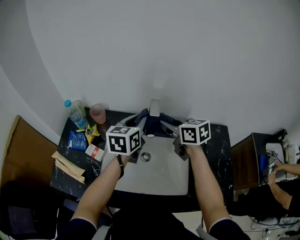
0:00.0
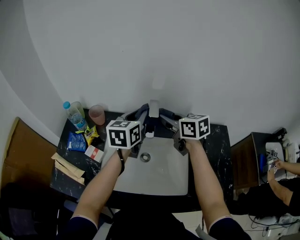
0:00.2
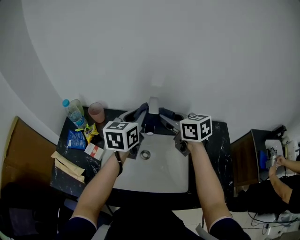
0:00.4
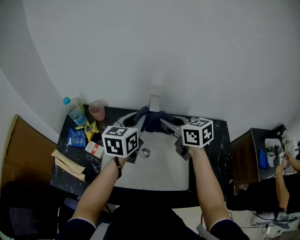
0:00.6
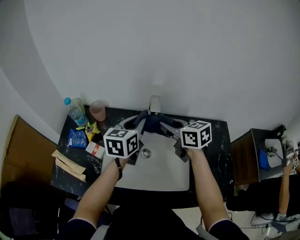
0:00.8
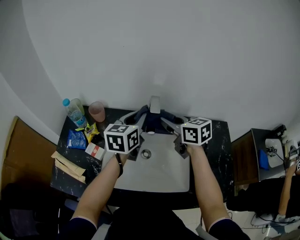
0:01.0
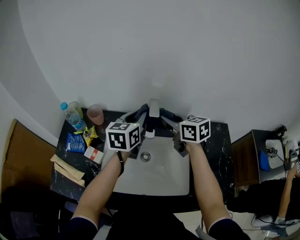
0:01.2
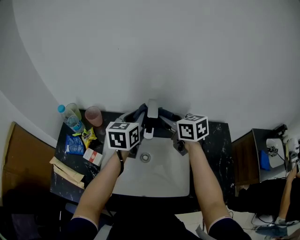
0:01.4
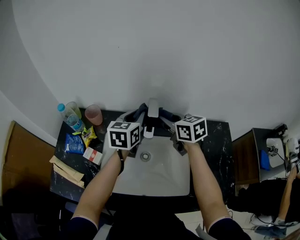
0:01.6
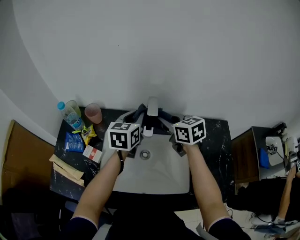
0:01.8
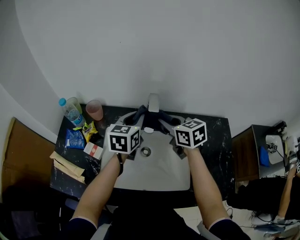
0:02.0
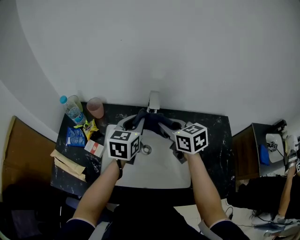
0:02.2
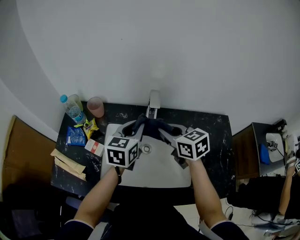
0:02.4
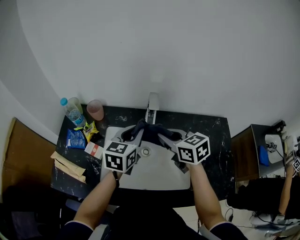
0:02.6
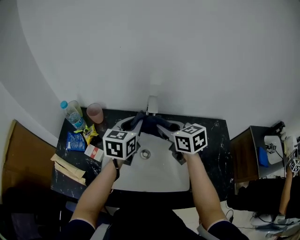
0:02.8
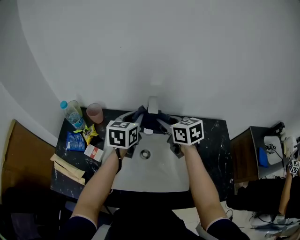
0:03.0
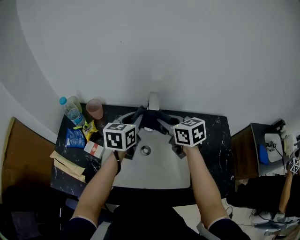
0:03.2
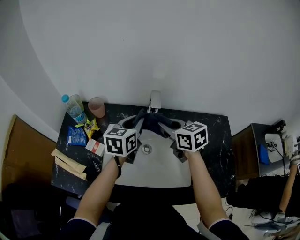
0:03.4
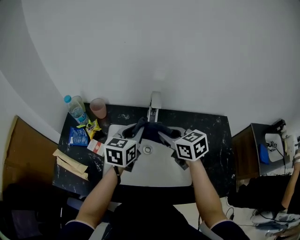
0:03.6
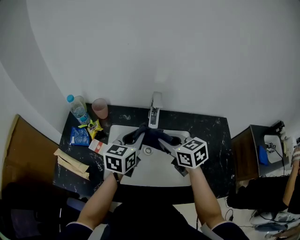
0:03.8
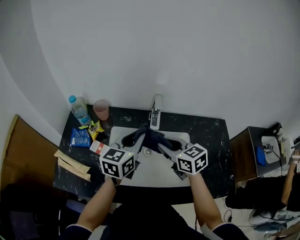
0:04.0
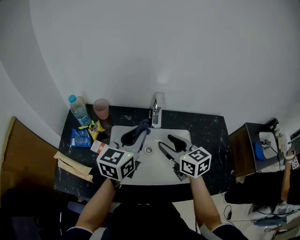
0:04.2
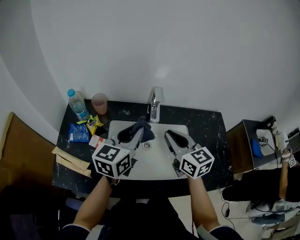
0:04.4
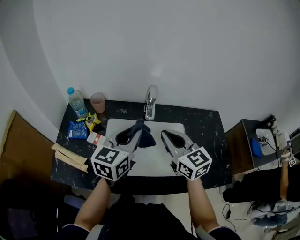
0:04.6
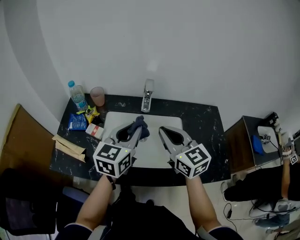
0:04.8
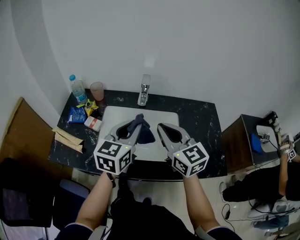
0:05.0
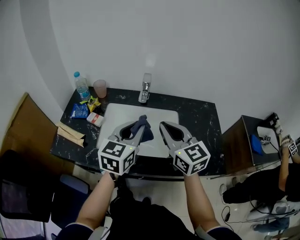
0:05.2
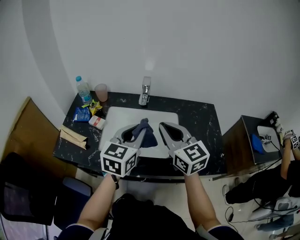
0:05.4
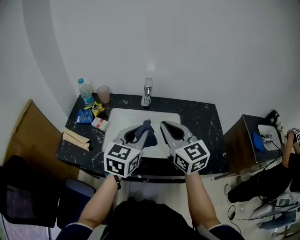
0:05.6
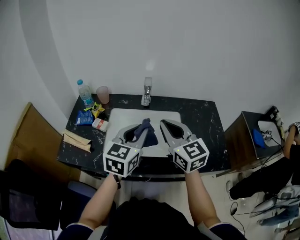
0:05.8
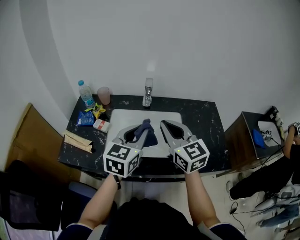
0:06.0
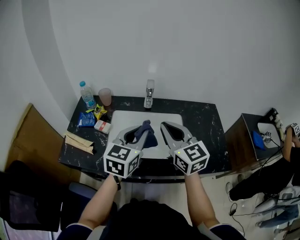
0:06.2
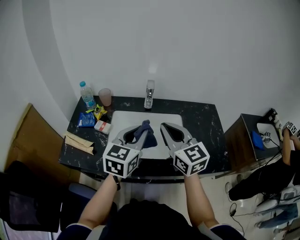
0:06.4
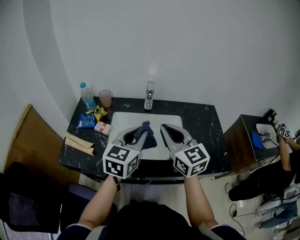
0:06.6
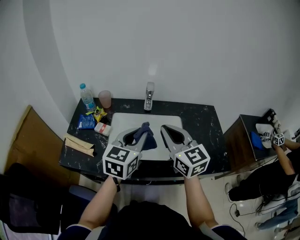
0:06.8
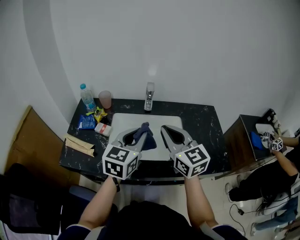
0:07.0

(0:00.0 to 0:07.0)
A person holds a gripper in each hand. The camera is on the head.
0:00.0 - 0:01.4: The grippers move only a little.
0:01.4 - 0:02.8: Both grippers travel together backward, approximately 5 cm.
0:02.8 - 0:04.2: Both grippers move backward, roughly 10 cm. The right gripper opens up.
0:04.2 - 0:05.6: The left gripper is displaced backward and to the right by some 15 cm, while the right gripper shifts some 15 cm backward and upward, changes its angle by about 20 degrees, and closes its fingers.
0:05.6 - 0:07.0: There are only small adjustments of the grippers.

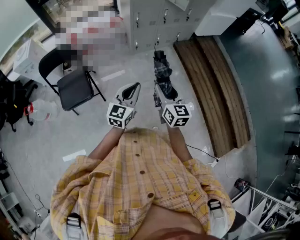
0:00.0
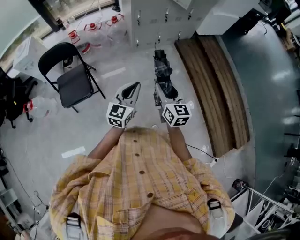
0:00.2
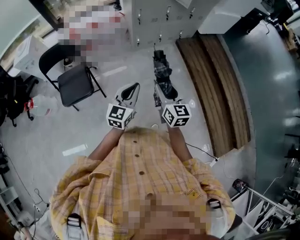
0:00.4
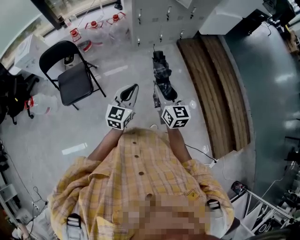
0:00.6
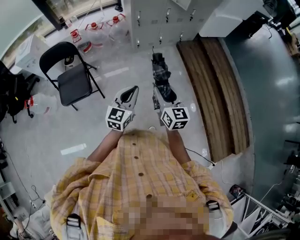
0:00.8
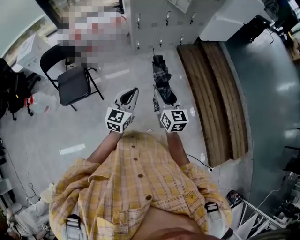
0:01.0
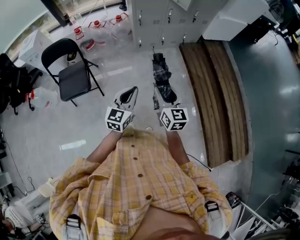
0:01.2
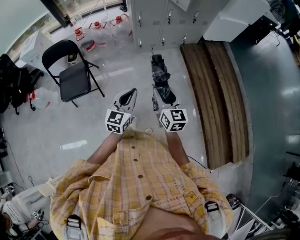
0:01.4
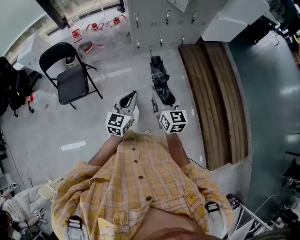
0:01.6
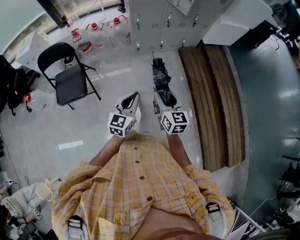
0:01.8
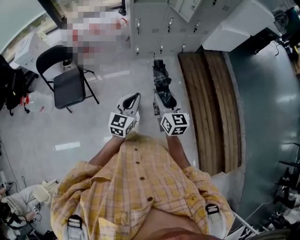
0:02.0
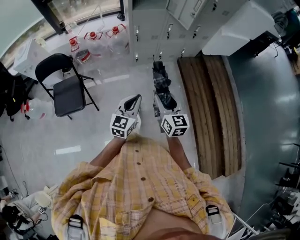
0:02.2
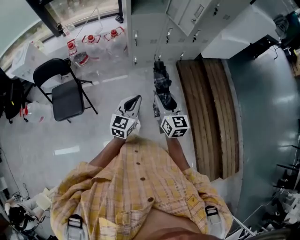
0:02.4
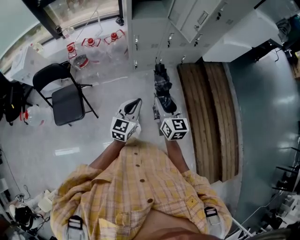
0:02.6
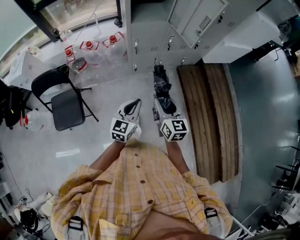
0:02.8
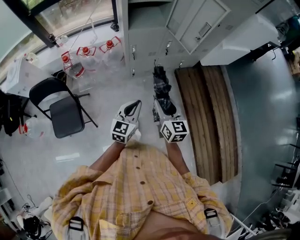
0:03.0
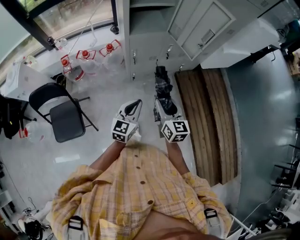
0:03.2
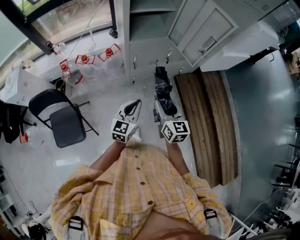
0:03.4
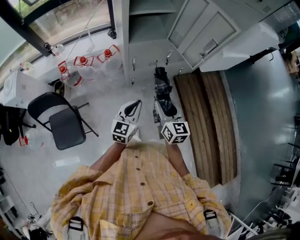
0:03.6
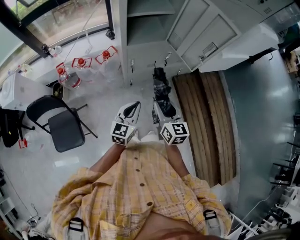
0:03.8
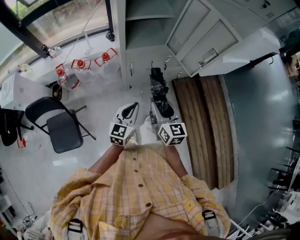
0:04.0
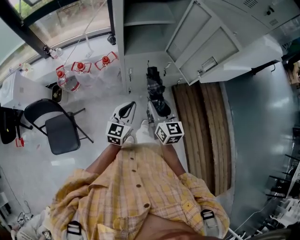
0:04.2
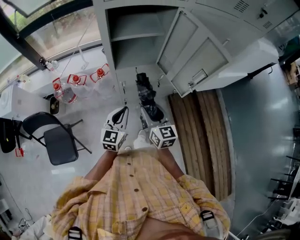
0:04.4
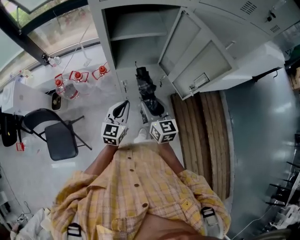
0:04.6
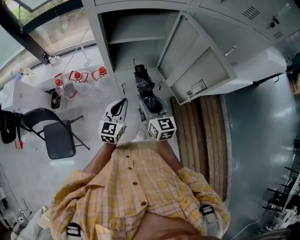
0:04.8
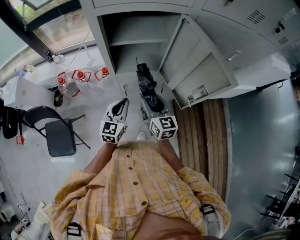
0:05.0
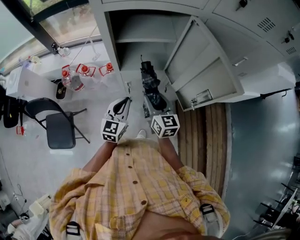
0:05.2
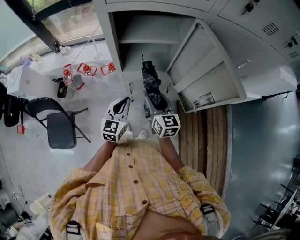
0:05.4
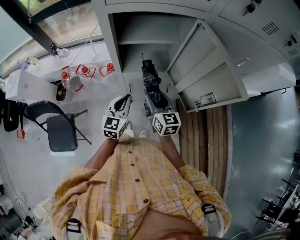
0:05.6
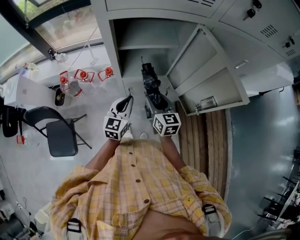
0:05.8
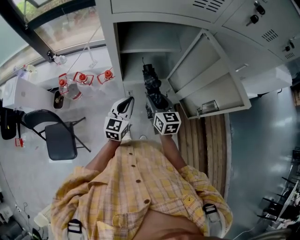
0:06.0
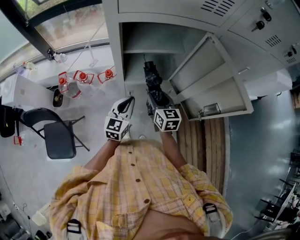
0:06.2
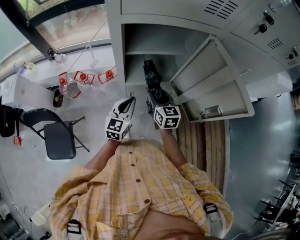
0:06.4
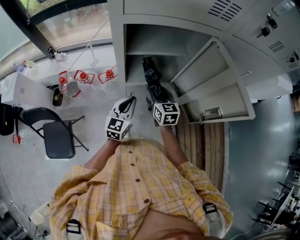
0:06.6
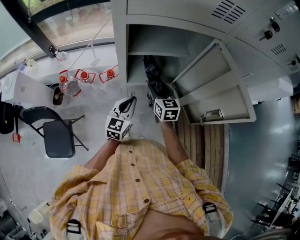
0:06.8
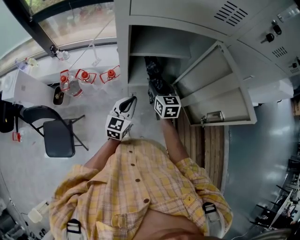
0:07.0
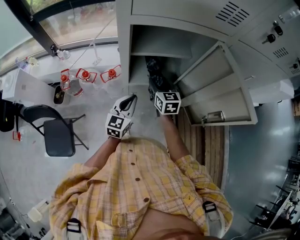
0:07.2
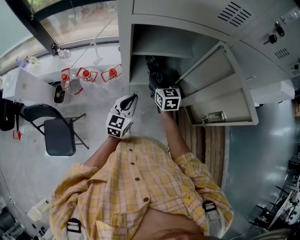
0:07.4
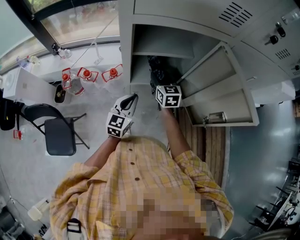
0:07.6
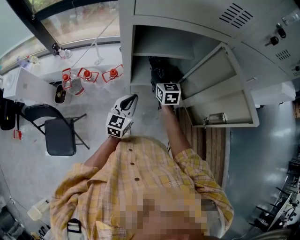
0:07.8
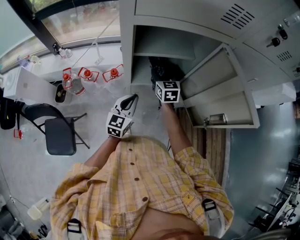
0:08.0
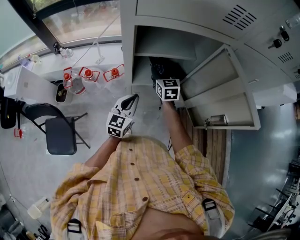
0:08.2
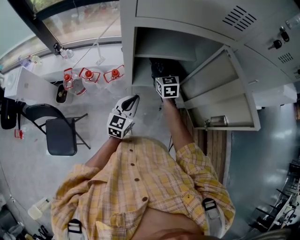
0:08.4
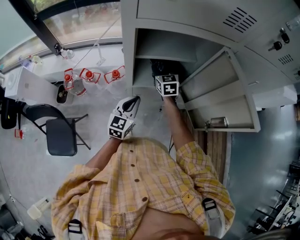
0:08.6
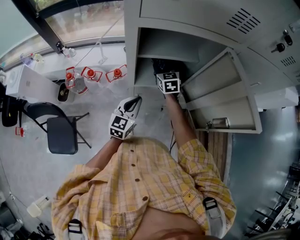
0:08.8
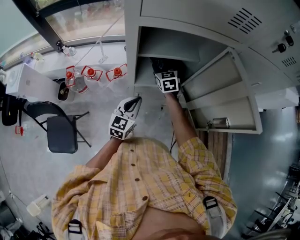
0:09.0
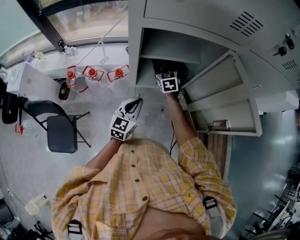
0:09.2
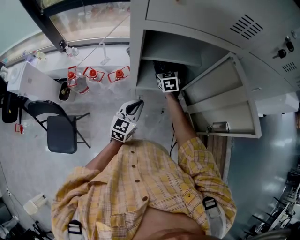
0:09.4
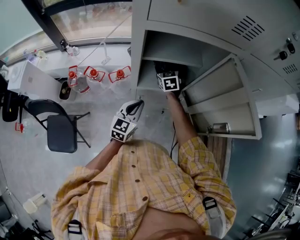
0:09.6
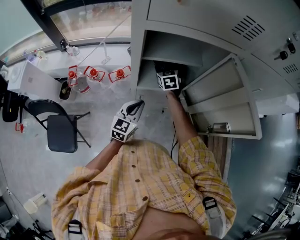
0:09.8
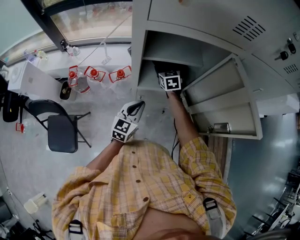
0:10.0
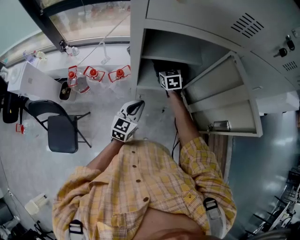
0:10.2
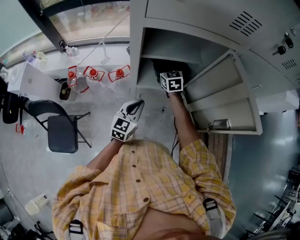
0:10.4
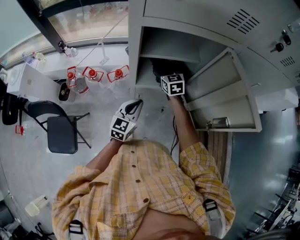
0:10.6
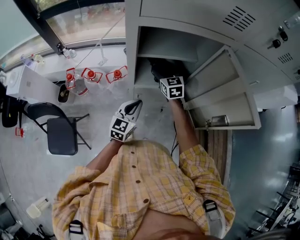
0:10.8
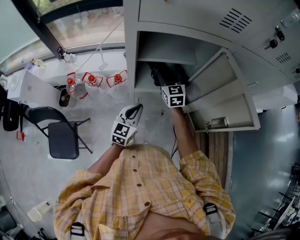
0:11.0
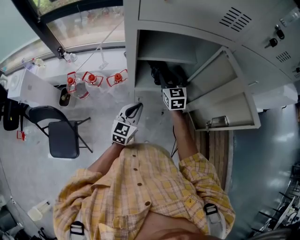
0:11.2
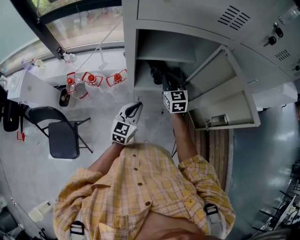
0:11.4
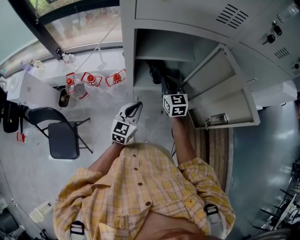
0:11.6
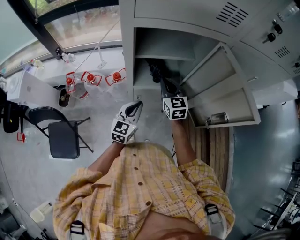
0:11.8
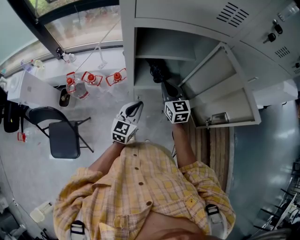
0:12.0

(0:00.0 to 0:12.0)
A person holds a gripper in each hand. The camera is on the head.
0:00.0 - 0:01.6: The left gripper heads to the right, covering some 10 cm, while the right gripper is displaced to the right and forward by approximately 10 cm.
0:01.6 - 0:03.0: Both grippers travel together forward, roughly 35 cm.
0:03.0 - 0:04.4: Both grippers travel together forward, about 25 cm.
0:04.4 - 0:06.0: The two grippers go some 15 cm forward.
0:06.0 - 0:07.6: The right gripper travels forward by approximately 15 cm.
0:07.6 - 0:09.0: The right gripper is displaced forward by some 5 cm.
0:09.0 - 0:10.4: The right gripper opens its fingers.
0:10.4 - 0:12.0: The right gripper is displaced backward by roughly 15 cm, and closes its fingers.

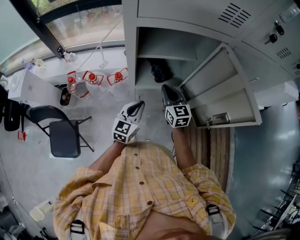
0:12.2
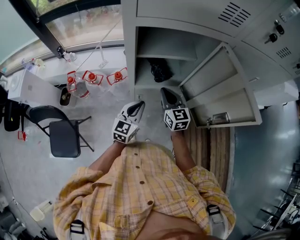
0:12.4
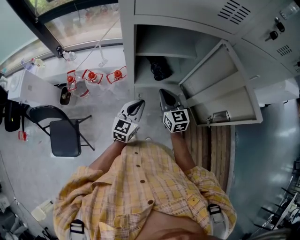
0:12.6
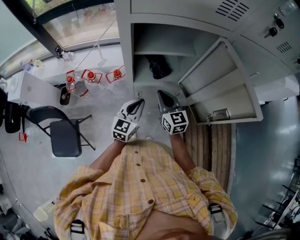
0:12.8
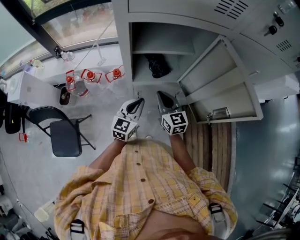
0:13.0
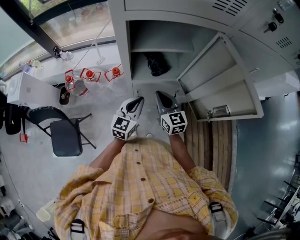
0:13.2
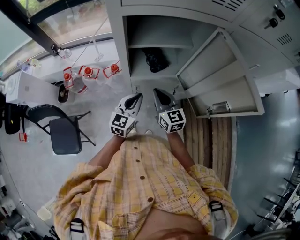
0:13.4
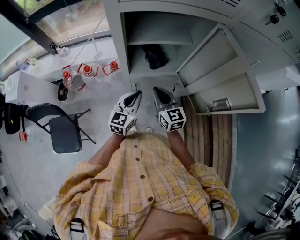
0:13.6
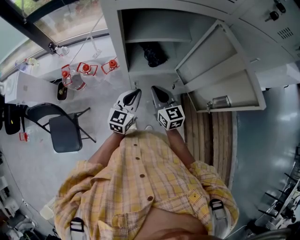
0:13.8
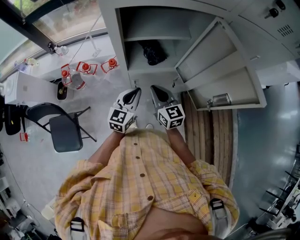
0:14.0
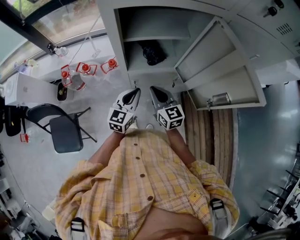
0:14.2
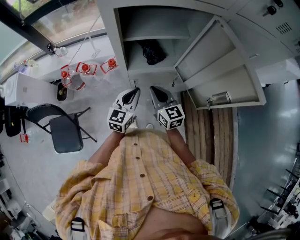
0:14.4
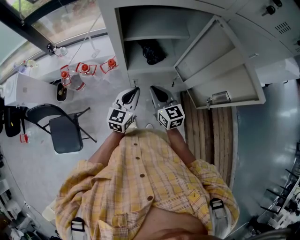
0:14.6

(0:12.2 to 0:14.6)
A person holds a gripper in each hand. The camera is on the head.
0:12.2 - 0:13.4: The right gripper goes about 5 cm backward.
0:13.4 - 0:14.6: The grippers move only a little.

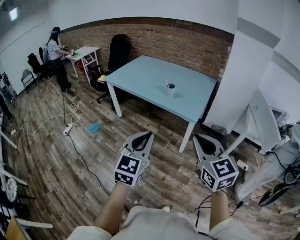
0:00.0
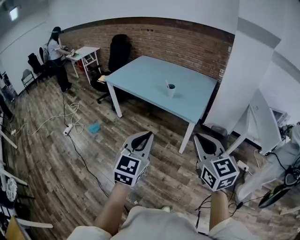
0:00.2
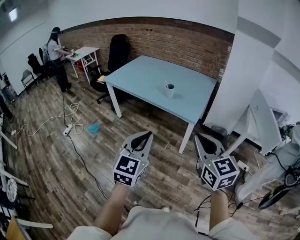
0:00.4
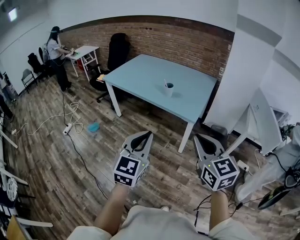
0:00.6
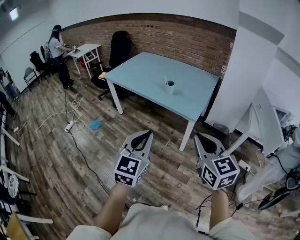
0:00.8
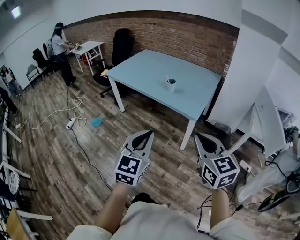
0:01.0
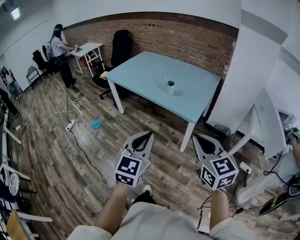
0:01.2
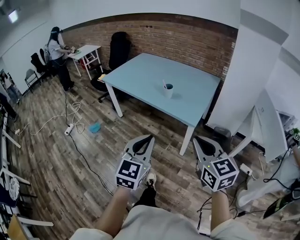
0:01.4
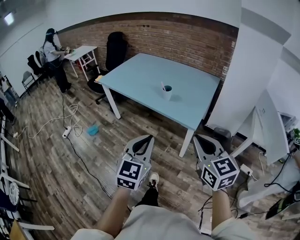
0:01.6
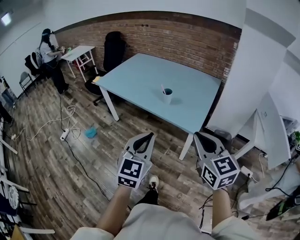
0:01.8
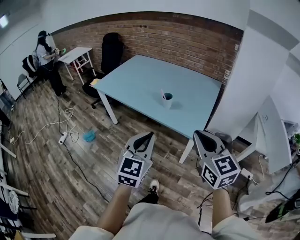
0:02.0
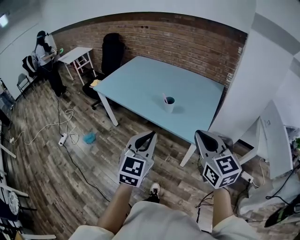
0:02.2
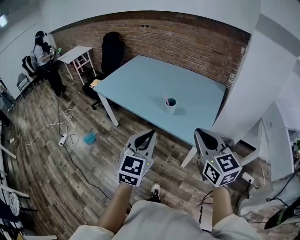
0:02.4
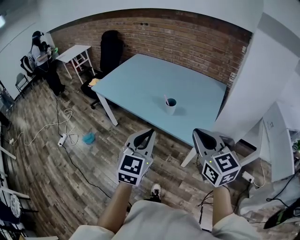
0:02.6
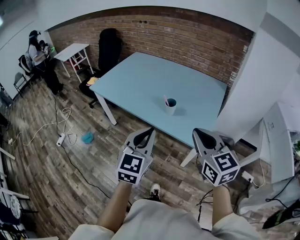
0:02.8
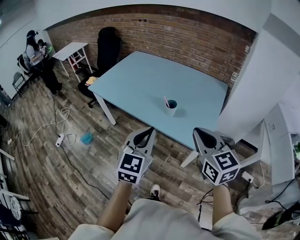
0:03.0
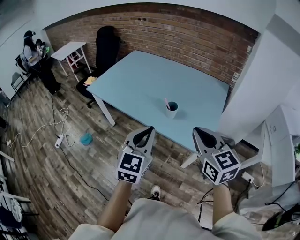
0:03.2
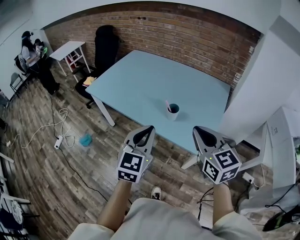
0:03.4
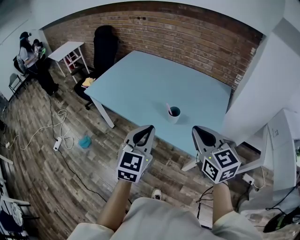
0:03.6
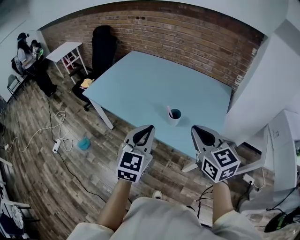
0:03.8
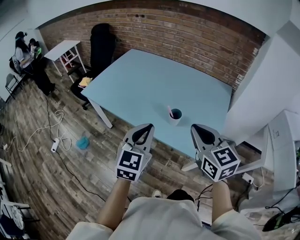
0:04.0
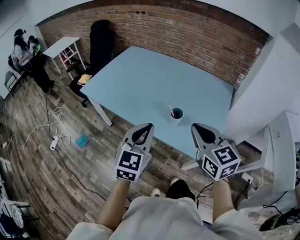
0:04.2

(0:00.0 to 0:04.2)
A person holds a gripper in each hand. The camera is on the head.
0:00.0 - 0:01.4: Both grippers move forward and to the right, roughly 10 cm.
0:01.4 - 0:02.8: The grippers both shift forward by some 30 cm.
0:02.8 - 0:04.2: The grippers both shift forward by approximately 15 cm.
